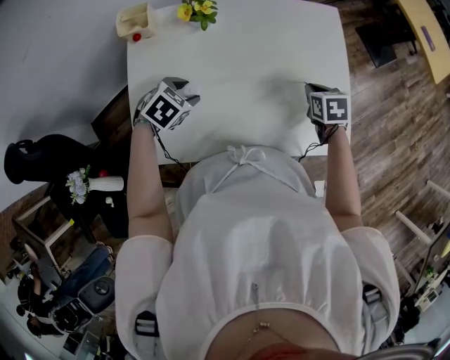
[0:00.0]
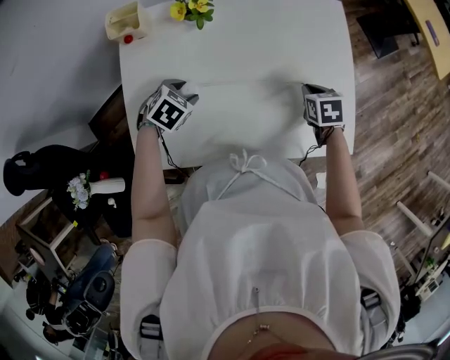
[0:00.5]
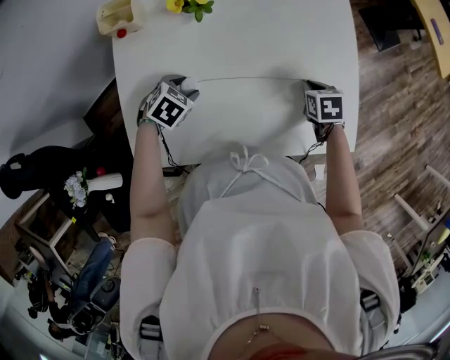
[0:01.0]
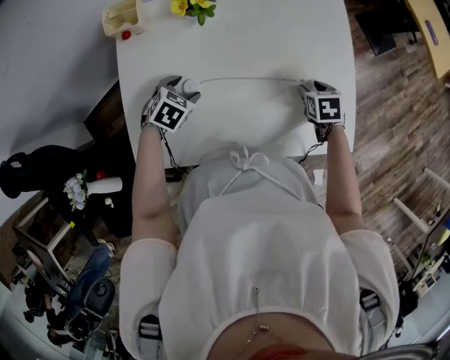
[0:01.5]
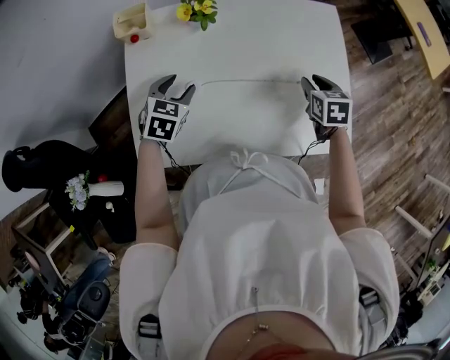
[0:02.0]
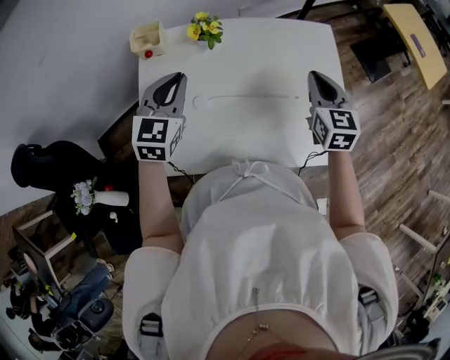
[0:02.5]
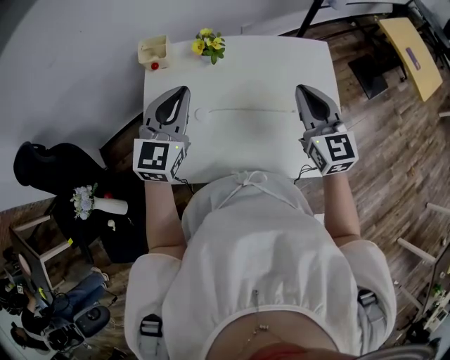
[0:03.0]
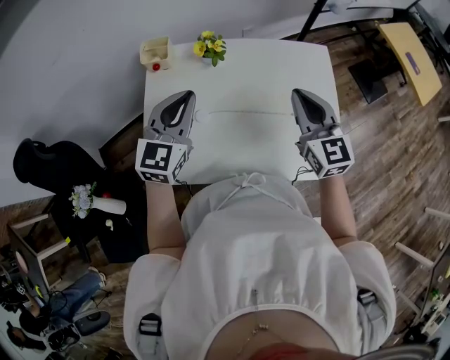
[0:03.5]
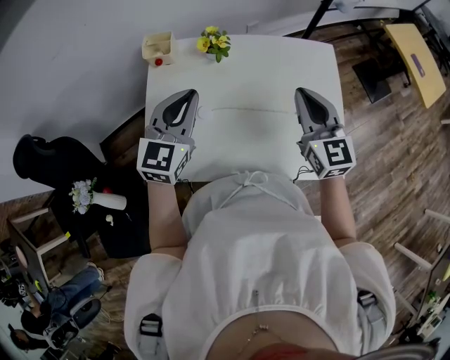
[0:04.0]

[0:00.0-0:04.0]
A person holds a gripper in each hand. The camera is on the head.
0:00.0 to 0:02.0: The right gripper goes downward and returns, about 5 cm each way. The left gripper reaches roughly 5 cm downward, then returns, and changes its angle by roughly 30 degrees.
0:02.0 to 0:04.0: The left gripper travels upward by approximately 20 cm, points its fingers roughly 40 degrees further upward, and closes up. Meanwhile the right gripper moves upward and to the left, approximately 25 cm, points its fingers about 40 degrees further upward, and closes its fingers.

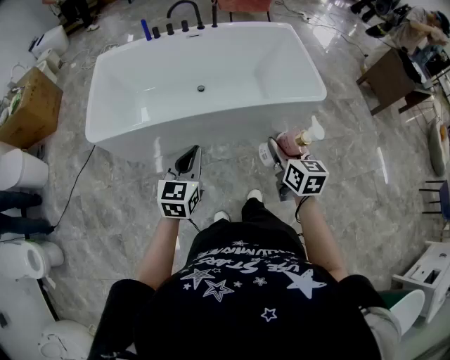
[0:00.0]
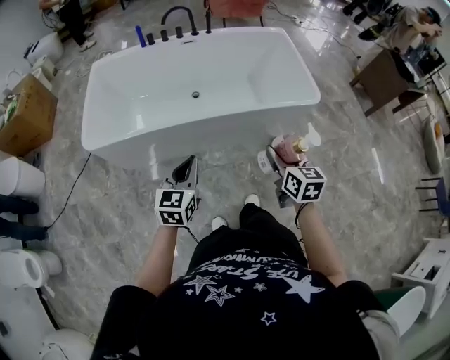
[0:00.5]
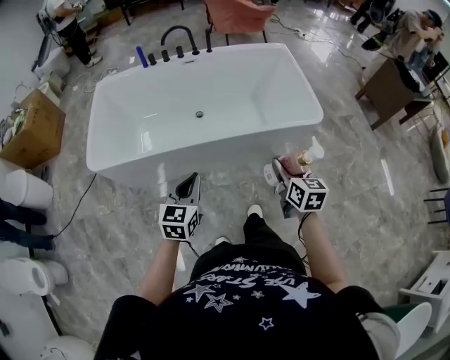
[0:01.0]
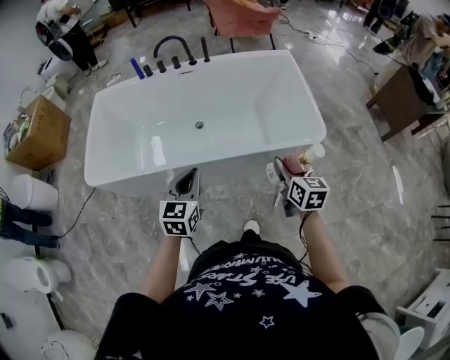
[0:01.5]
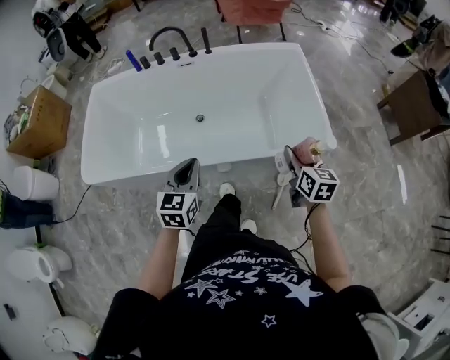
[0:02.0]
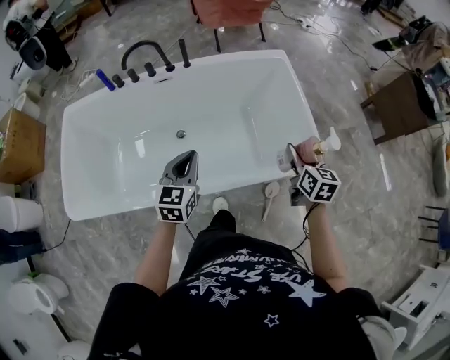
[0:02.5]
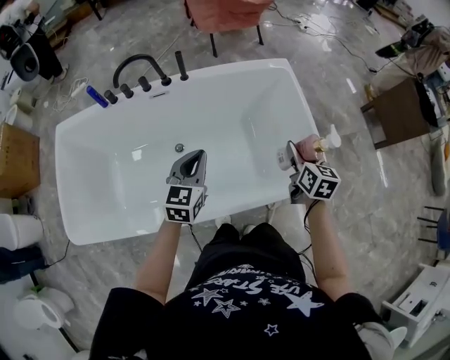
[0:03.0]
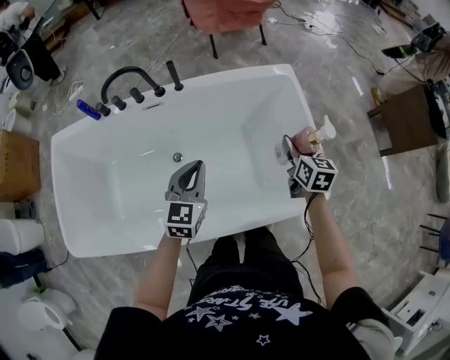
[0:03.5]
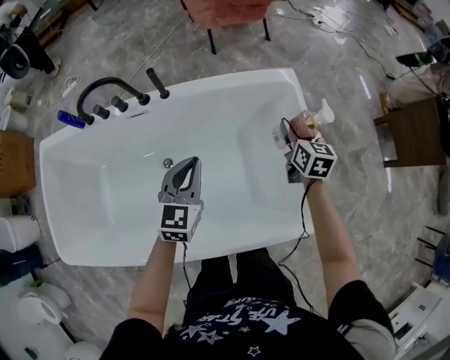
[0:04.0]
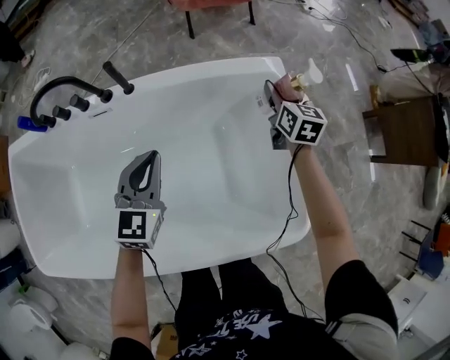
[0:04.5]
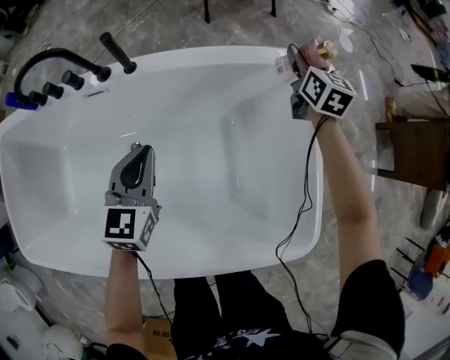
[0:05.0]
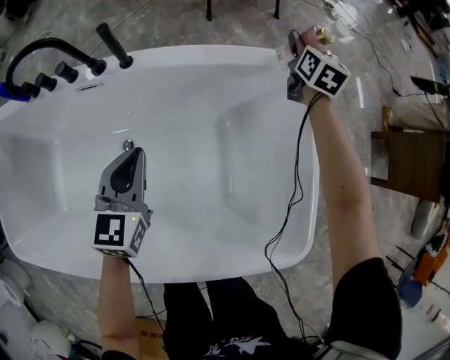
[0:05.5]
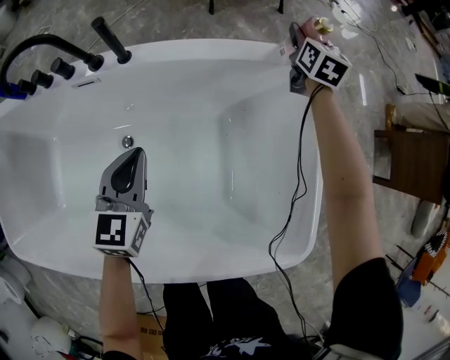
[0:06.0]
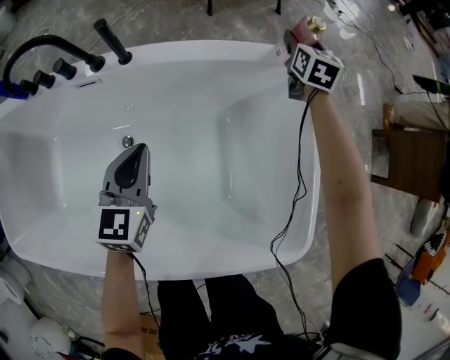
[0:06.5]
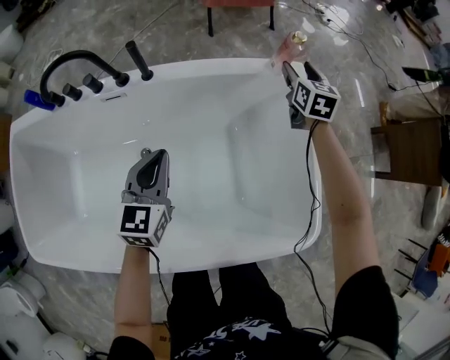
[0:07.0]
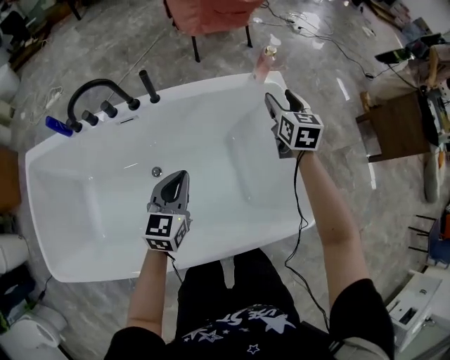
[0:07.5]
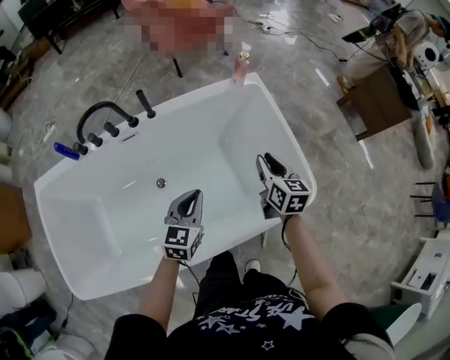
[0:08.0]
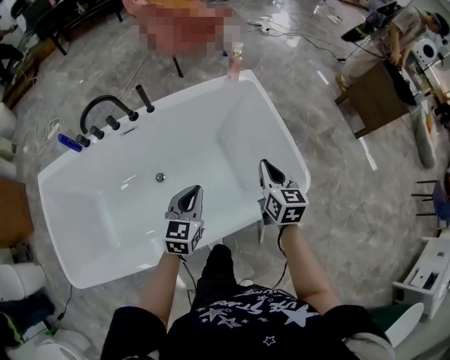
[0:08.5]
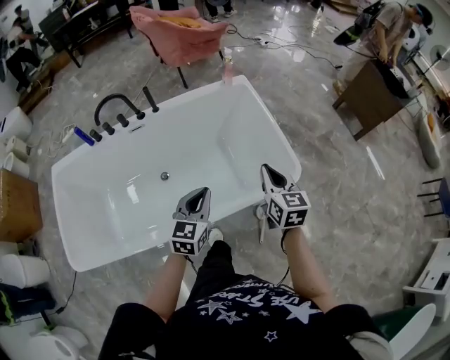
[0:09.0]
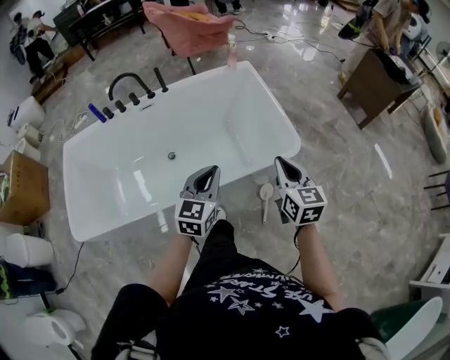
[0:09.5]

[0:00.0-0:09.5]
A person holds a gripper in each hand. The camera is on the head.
0:00.0 to 0:02.0: Both grippers move forward and to the right, approximately 30 cm.
0:02.0 to 0:04.0: Both grippers are carried forward, approximately 50 cm.
0:04.0 to 0:05.5: The left gripper is displaced downward and forward by approximately 15 cm, while the right gripper moves forward, approximately 30 cm.
0:05.5 to 0:07.5: The left gripper goes approximately 15 cm backward and upward. Meanwhile the right gripper travels backward and upward by approximately 30 cm.
0:07.5 to 0:09.5: The left gripper goes approximately 40 cm backward, to the right and upward. Meanwhile the right gripper moves backward, approximately 60 cm, and closes its fingers.

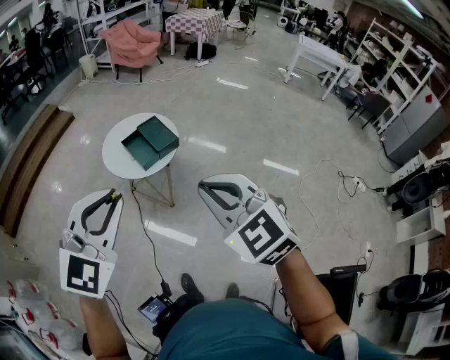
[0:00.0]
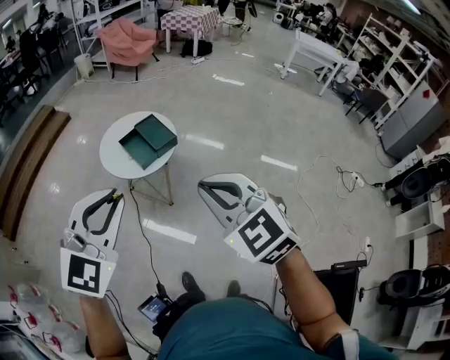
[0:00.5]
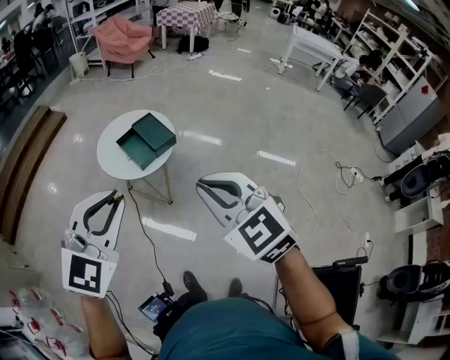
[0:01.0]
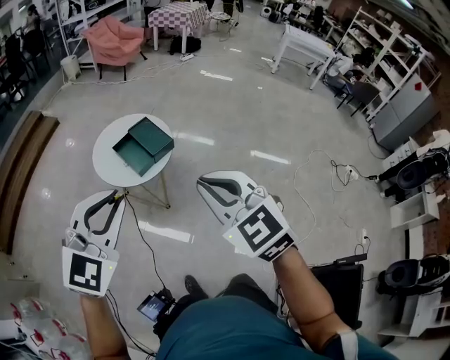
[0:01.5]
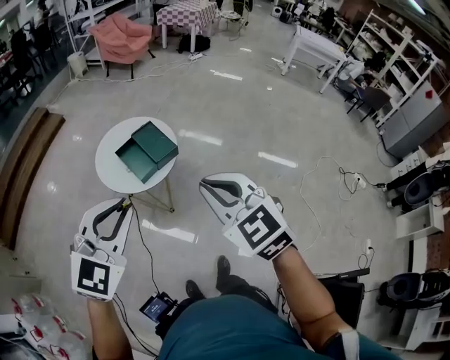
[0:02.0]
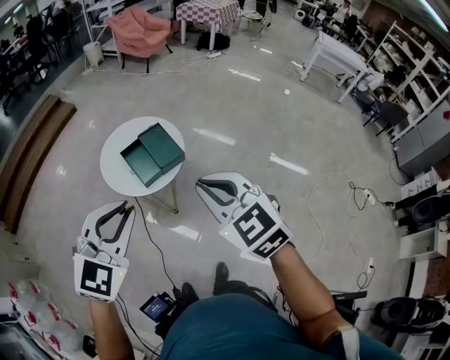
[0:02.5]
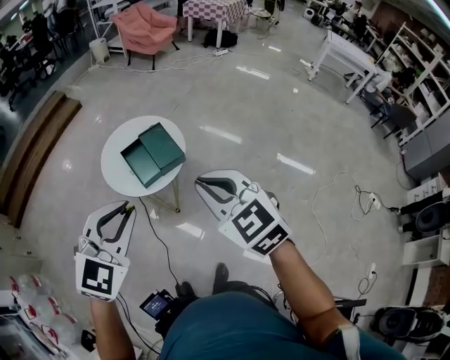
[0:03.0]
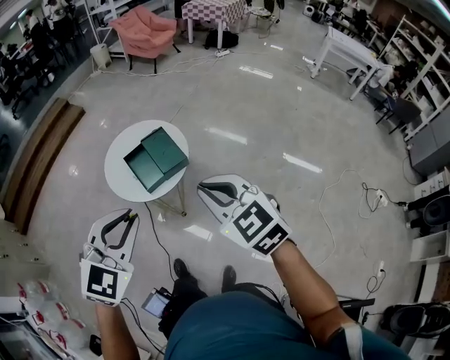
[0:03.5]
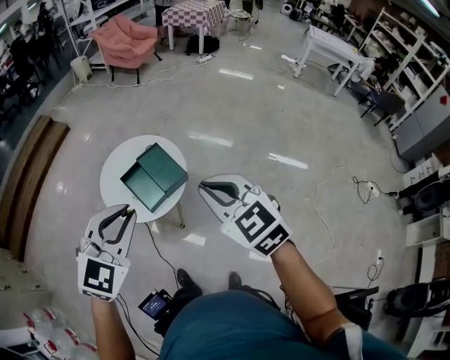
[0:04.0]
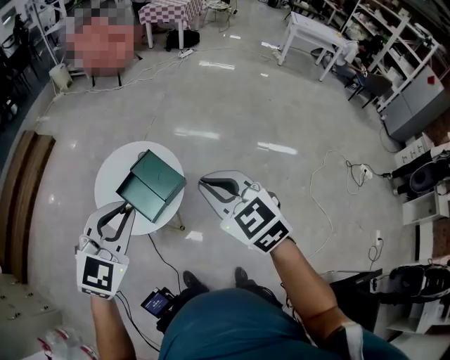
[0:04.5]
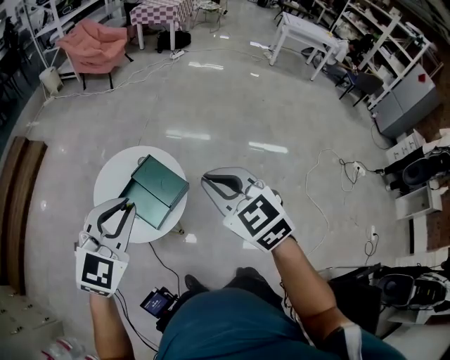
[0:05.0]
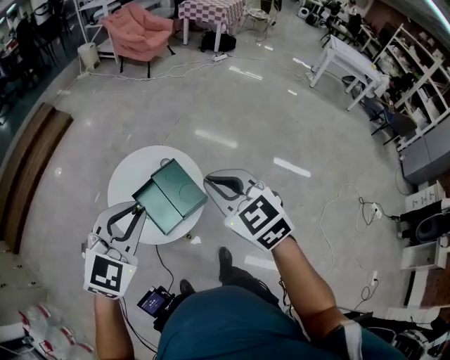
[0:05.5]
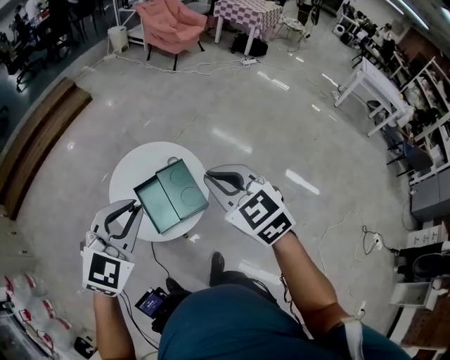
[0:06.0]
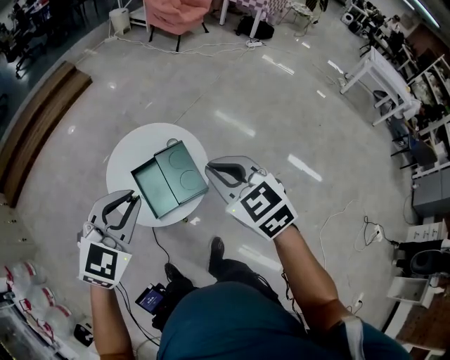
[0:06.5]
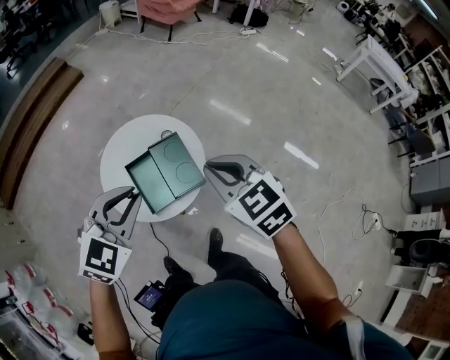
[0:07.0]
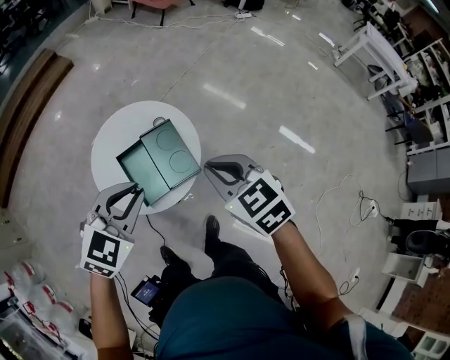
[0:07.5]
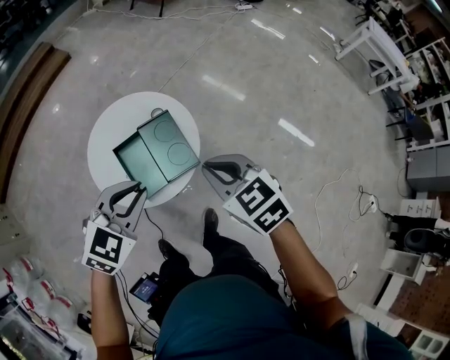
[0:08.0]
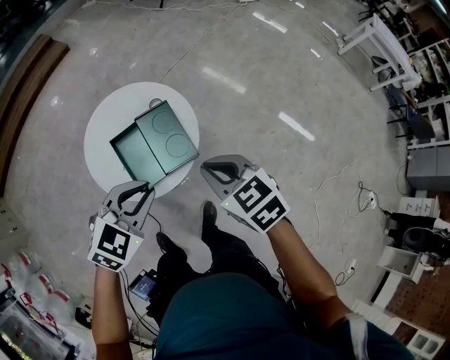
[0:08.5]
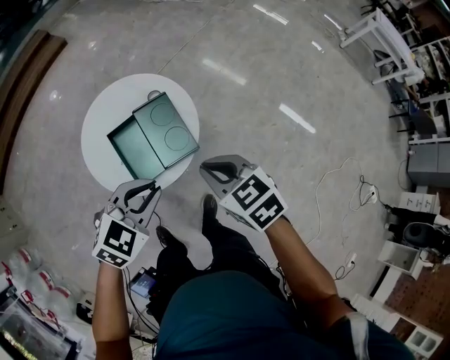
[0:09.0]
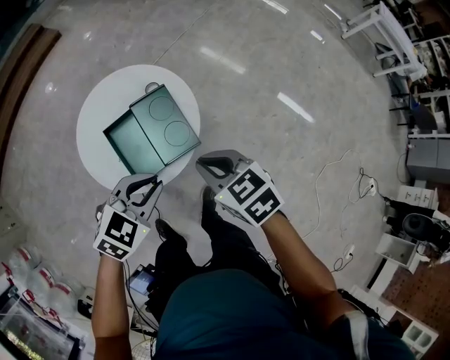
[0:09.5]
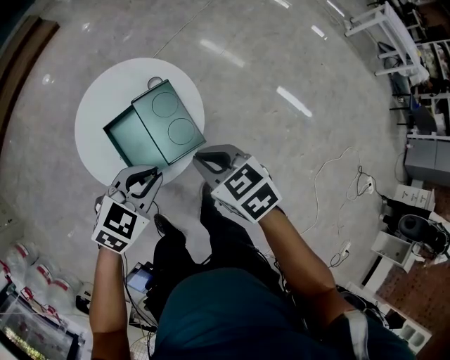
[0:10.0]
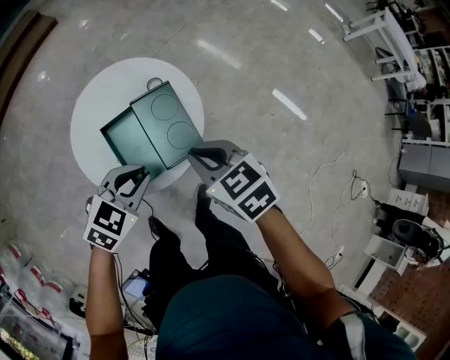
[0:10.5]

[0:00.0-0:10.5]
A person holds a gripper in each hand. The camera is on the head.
0:00.0 to 0:02.0: Both grippers move forward, about 20 cm.
0:02.0 to 0:04.0: Both grippers move forward, approximately 25 cm.
0:04.0 to 0:06.5: The grippers both shift forward by about 30 cm.
0:06.5 to 0:08.5: Both grippers move downward, approximately 20 cm.
0:08.5 to 0:10.5: The left gripper travels downward and forward by some 15 cm. The right gripper shifts approximately 15 cm downward, forward and to the left.

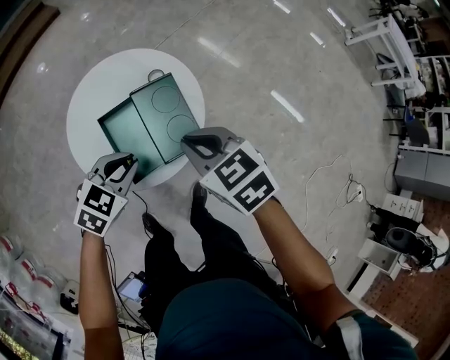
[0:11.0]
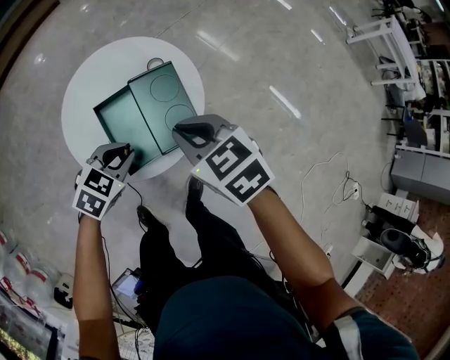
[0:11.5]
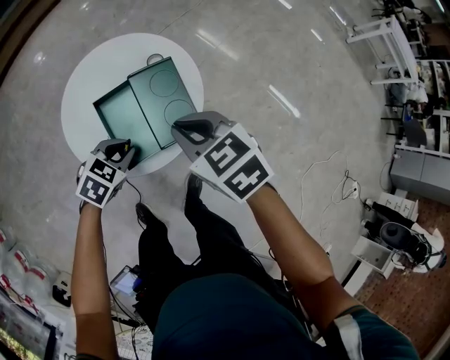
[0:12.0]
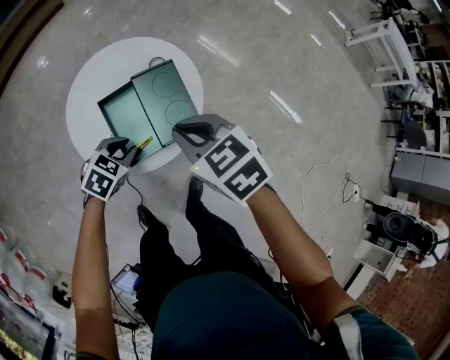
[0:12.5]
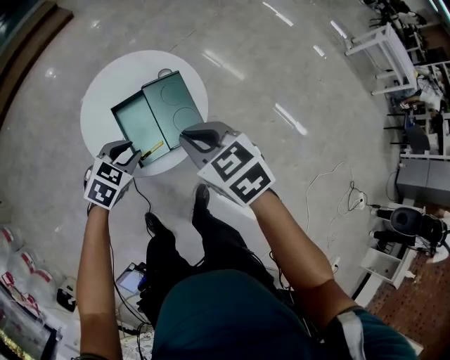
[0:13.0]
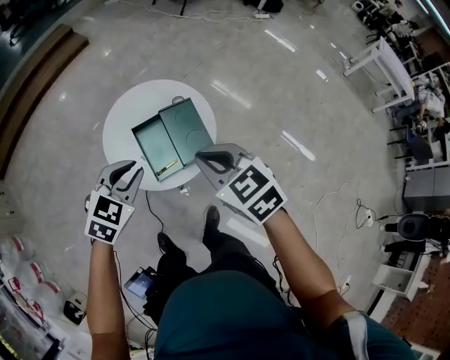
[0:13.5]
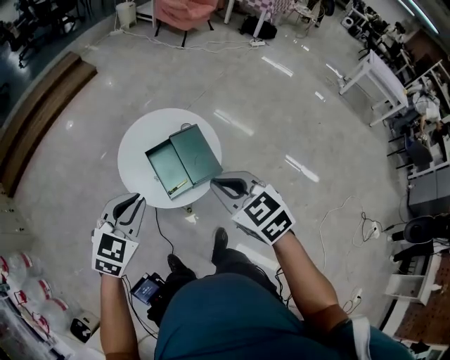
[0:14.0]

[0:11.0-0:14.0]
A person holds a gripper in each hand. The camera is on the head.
0:11.0 to 0:12.5: The left gripper heads downward, covering about 10 cm.
0:12.5 to 0:14.0: Both grippers travel together upward and backward, approximately 35 cm. The left gripper rotates roughly 30 degrees.
